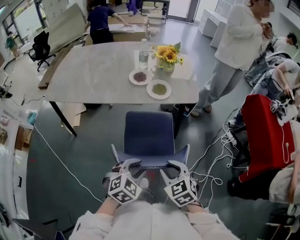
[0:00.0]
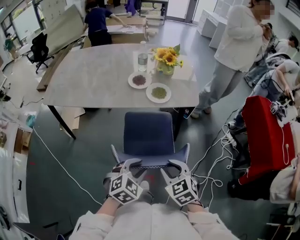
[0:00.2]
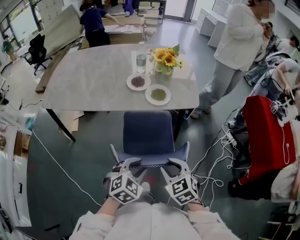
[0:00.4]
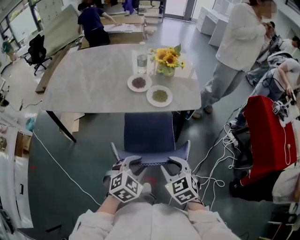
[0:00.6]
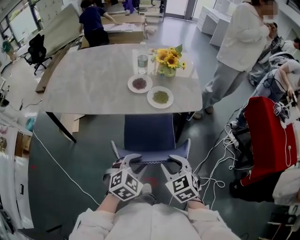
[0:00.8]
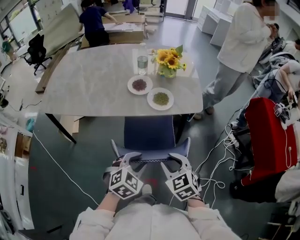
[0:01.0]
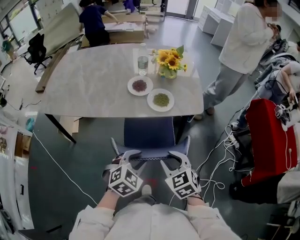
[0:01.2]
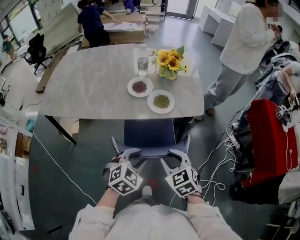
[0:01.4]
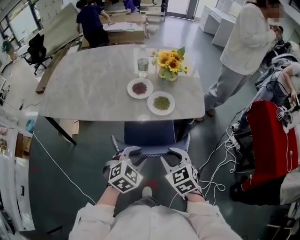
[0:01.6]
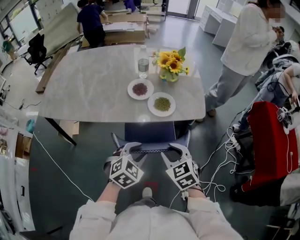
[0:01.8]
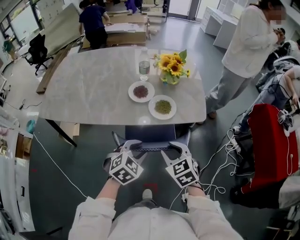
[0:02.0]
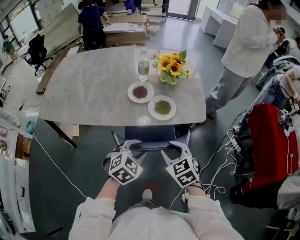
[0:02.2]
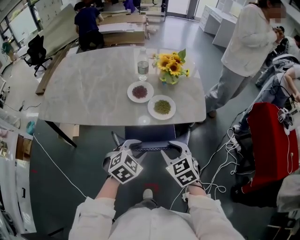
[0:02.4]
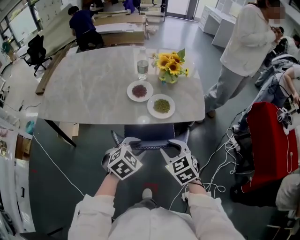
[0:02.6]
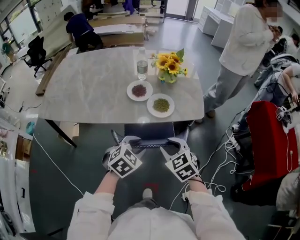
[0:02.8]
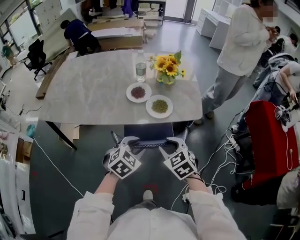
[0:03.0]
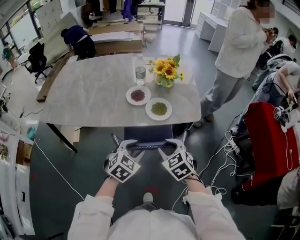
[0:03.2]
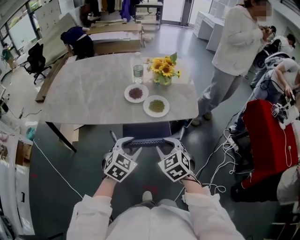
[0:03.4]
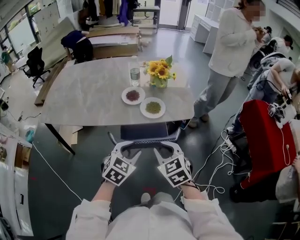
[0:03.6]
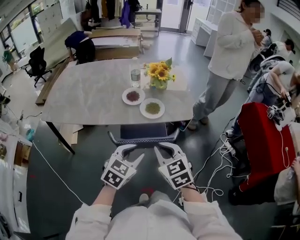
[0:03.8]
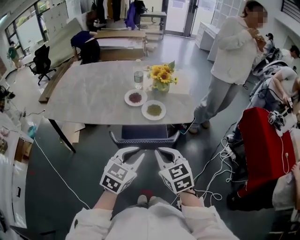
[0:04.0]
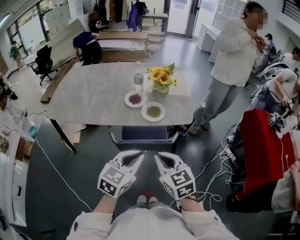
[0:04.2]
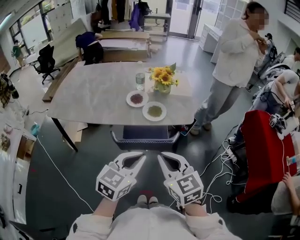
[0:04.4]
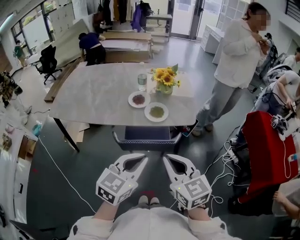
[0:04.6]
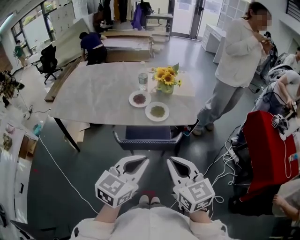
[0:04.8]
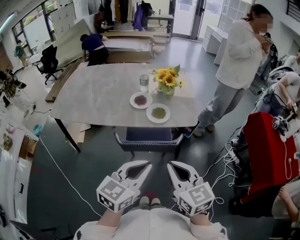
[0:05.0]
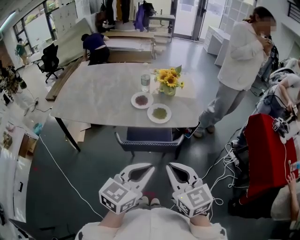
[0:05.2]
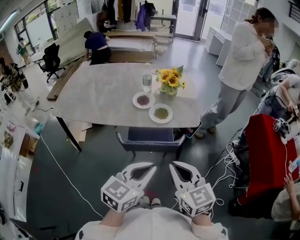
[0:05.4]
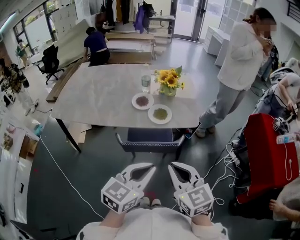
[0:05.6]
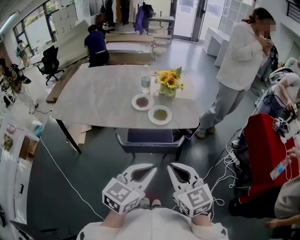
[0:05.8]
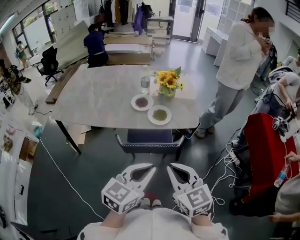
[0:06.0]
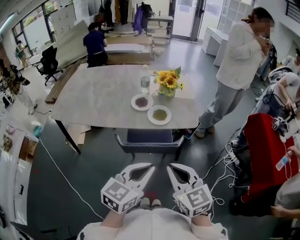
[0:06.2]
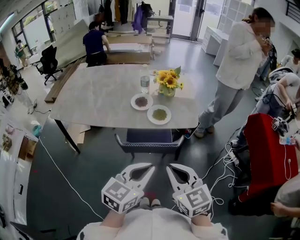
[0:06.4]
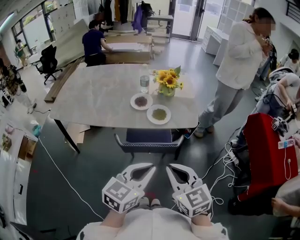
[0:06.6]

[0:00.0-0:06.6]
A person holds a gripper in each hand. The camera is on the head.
0:00.0 to 0:01.6: Both grippers travel together forward, some 20 cm.
0:01.6 to 0:03.2: There are only small adjustments of the grippers.
0:03.2 to 0:05.0: The right gripper goes approximately 20 cm upward and backward, swivels approximately 30 degrees, and closes its fingers; the left gripper heads upward, backward and to the right, covering roughly 25 cm, changes its angle by approximately 40 degrees, and closes its fingers.
0:05.0 to 0:06.6: The grippers stay close to where they were, moving slightly.

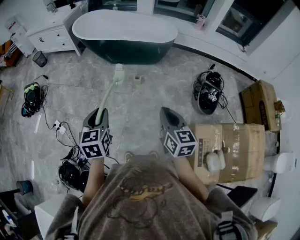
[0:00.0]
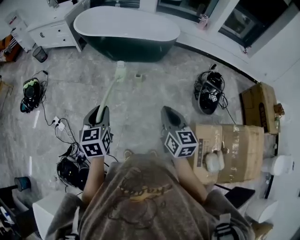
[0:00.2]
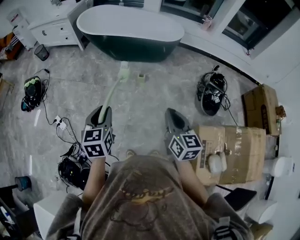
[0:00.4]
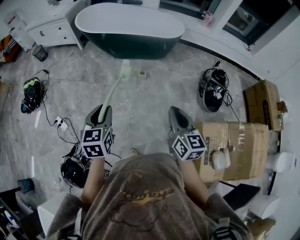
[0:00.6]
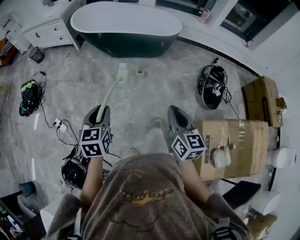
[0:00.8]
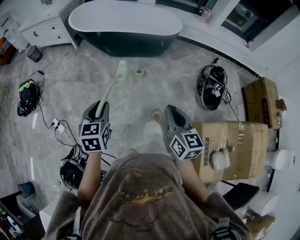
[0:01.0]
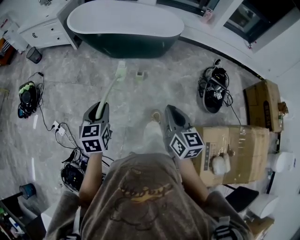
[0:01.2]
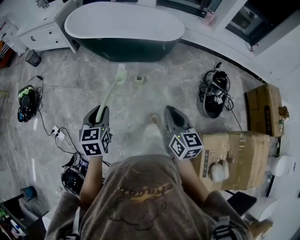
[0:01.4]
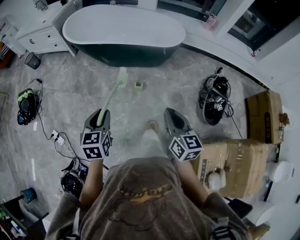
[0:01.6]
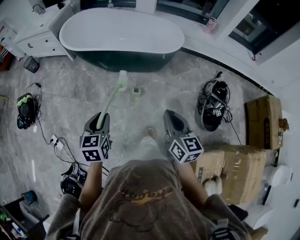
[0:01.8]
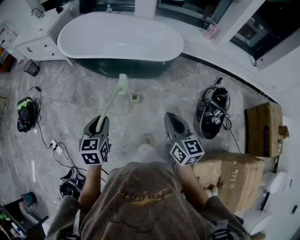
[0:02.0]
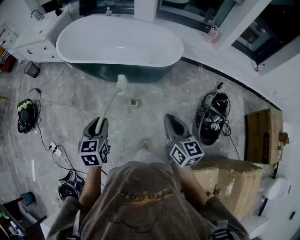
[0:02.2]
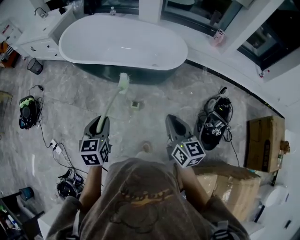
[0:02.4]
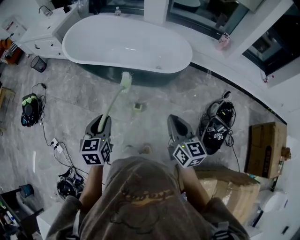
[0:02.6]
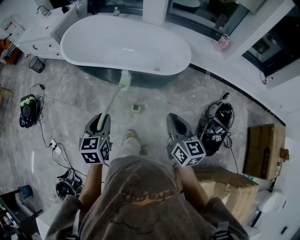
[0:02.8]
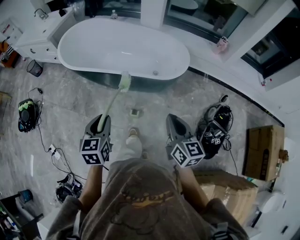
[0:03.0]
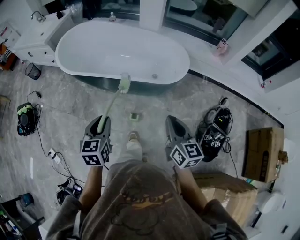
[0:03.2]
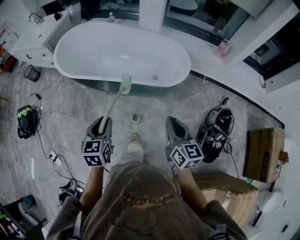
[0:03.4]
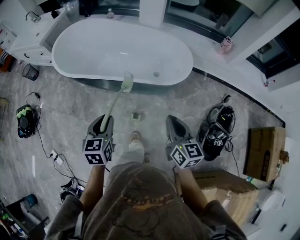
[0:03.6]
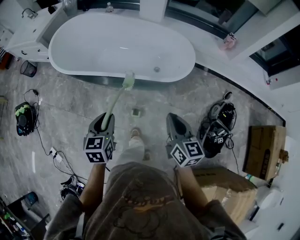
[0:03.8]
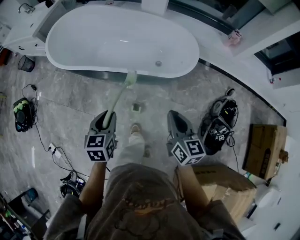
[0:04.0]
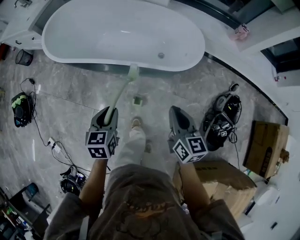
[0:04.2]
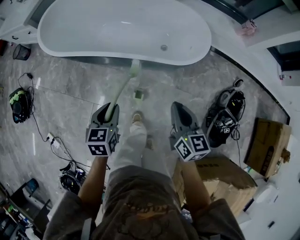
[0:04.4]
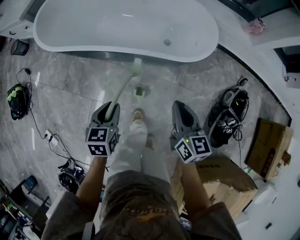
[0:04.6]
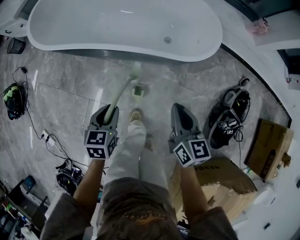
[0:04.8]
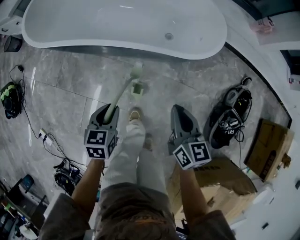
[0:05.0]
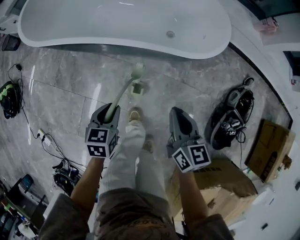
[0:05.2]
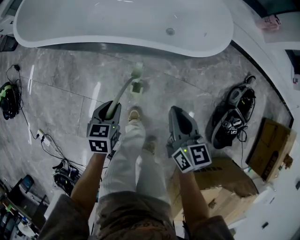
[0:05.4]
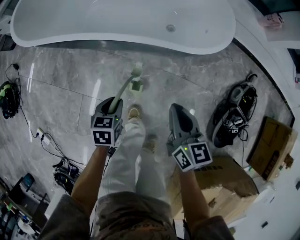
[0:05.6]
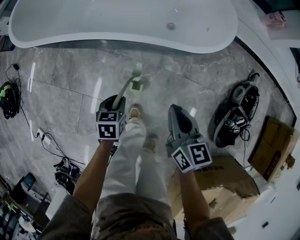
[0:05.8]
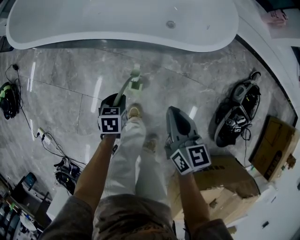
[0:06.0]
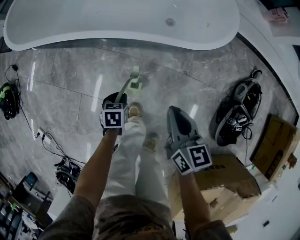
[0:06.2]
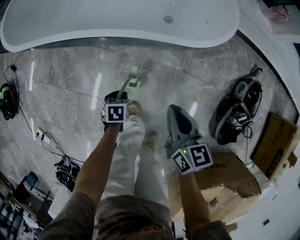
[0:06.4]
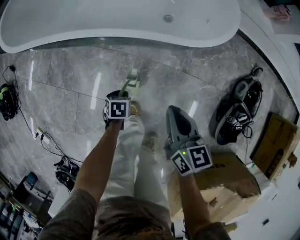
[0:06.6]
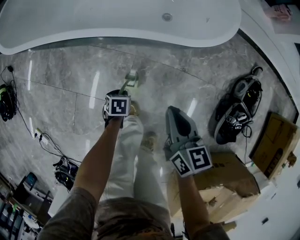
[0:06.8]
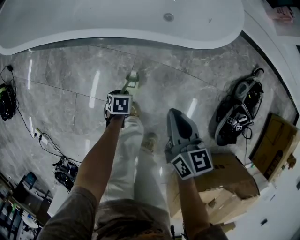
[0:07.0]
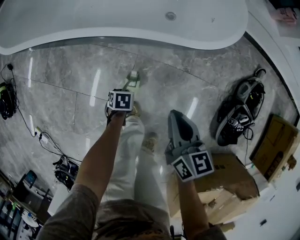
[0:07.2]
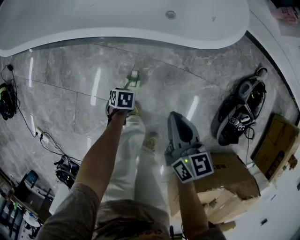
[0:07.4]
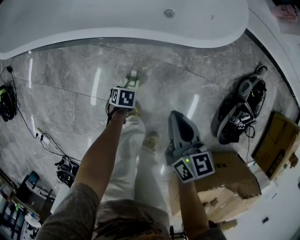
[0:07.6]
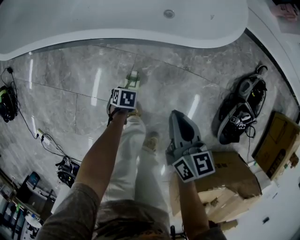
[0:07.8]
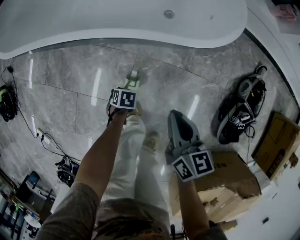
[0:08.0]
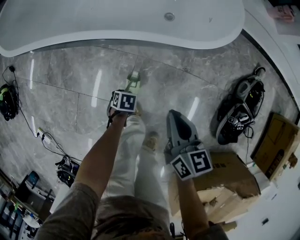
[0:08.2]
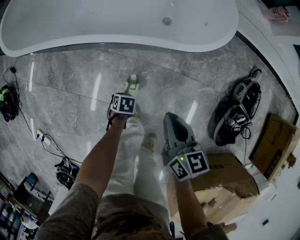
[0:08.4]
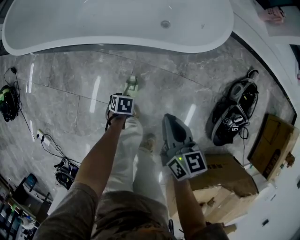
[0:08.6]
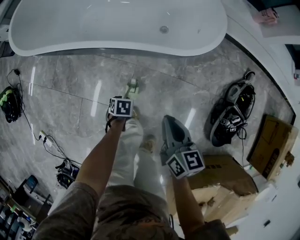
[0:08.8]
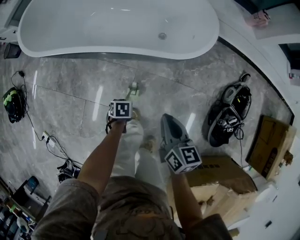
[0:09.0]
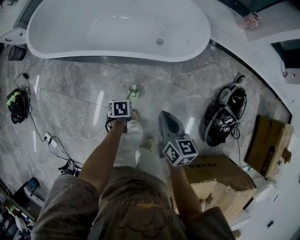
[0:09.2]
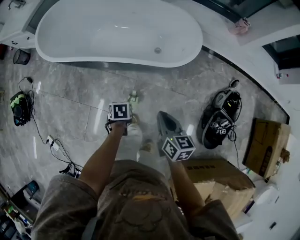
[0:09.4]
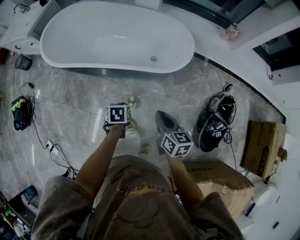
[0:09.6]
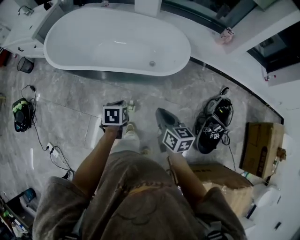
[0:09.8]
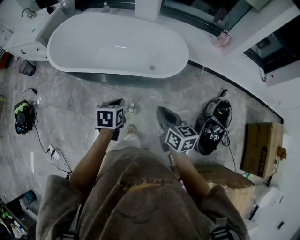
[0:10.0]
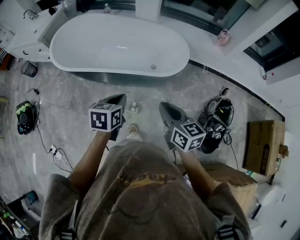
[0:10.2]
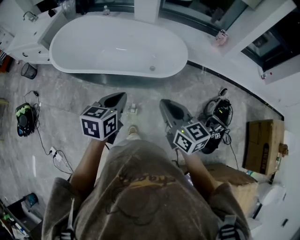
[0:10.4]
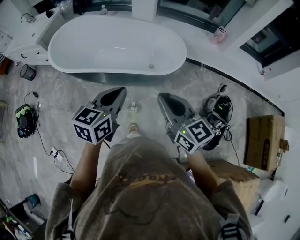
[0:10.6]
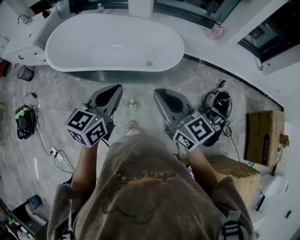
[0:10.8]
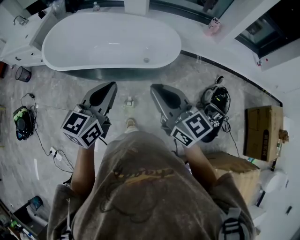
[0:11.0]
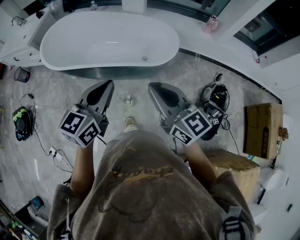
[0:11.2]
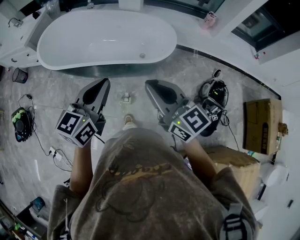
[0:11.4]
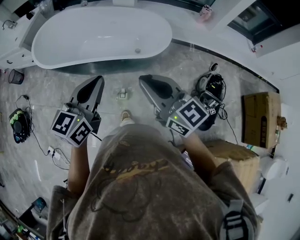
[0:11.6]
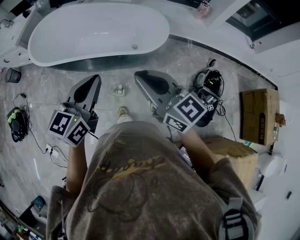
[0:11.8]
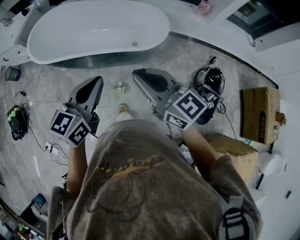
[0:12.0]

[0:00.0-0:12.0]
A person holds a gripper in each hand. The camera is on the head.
0:00.0 to 0:01.6: Both grippers move forward, about 20 cm.
0:01.6 to 0:03.0: Both grippers travel together forward and to the right, roughly 30 cm.
0:03.0 to 0:04.4: The left gripper moves downward and forward, some 20 cm, while the right gripper heads forward and downward, covering about 20 cm.
0:04.4 to 0:06.0: The right gripper moves downward, approximately 20 cm, while the left gripper shifts about 30 cm downward, and changes its angle by approximately 20 degrees.
0:06.0 to 0:07.6: The right gripper moves about 5 cm. Meanwhile the left gripper heads downward, covering about 15 cm, and turns by some 20 degrees.
0:07.6 to 0:09.0: The two grippers go approximately 15 cm upward. The left gripper closes.
0:09.0 to 0:10.4: The right gripper shifts approximately 30 cm upward, and turns by roughly 30 degrees, while the left gripper moves upward, about 50 cm, and angles its fingers upward, by roughly 50 degrees.
0:10.4 to 0:12.0: The left gripper shifts roughly 10 cm upward and backward, and changes its angle by about 20 degrees. Meanwhile the right gripper shifts approximately 5 cm upward.

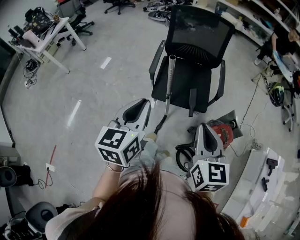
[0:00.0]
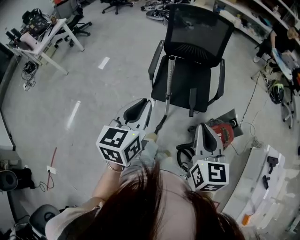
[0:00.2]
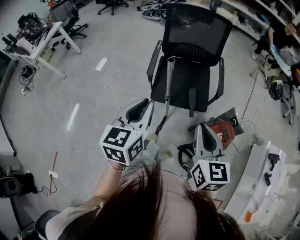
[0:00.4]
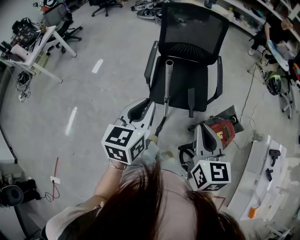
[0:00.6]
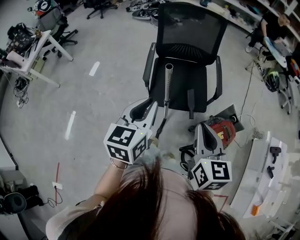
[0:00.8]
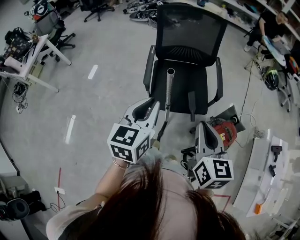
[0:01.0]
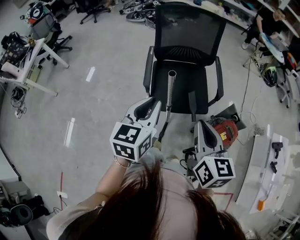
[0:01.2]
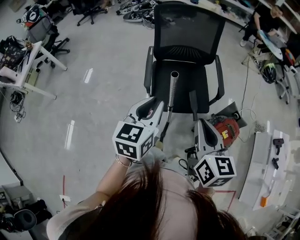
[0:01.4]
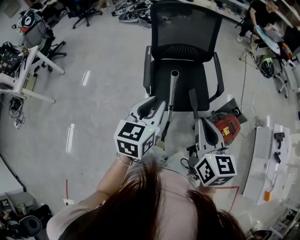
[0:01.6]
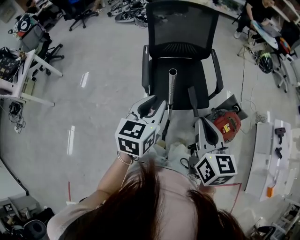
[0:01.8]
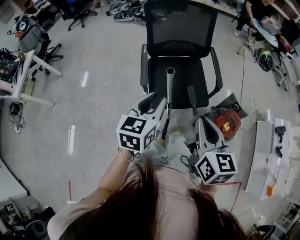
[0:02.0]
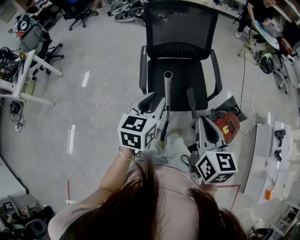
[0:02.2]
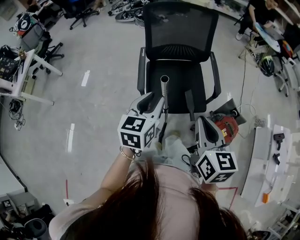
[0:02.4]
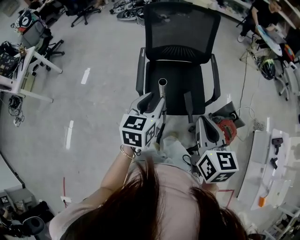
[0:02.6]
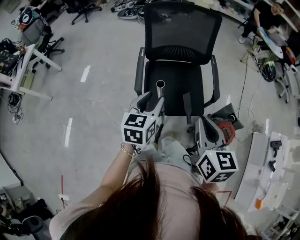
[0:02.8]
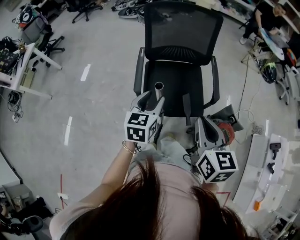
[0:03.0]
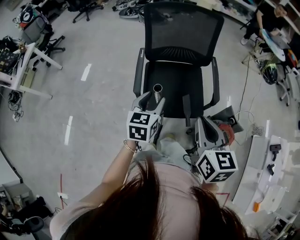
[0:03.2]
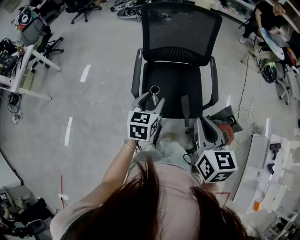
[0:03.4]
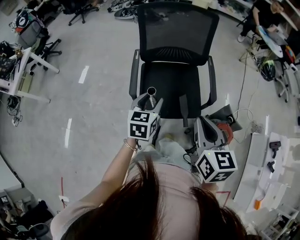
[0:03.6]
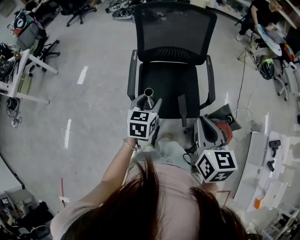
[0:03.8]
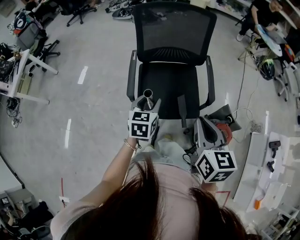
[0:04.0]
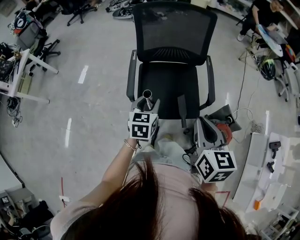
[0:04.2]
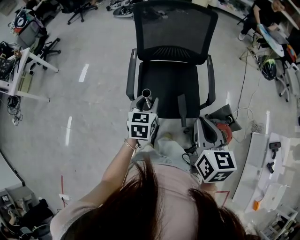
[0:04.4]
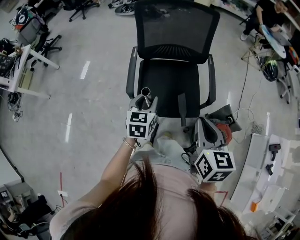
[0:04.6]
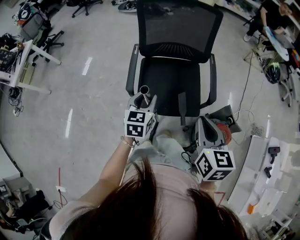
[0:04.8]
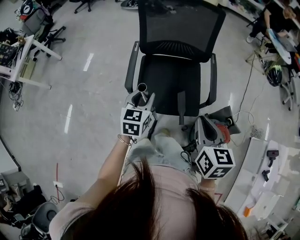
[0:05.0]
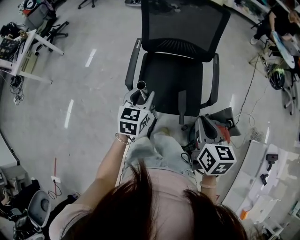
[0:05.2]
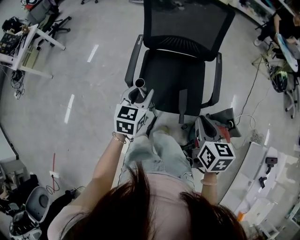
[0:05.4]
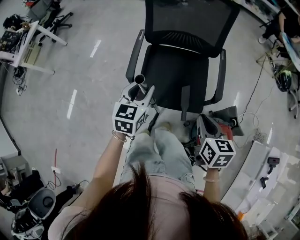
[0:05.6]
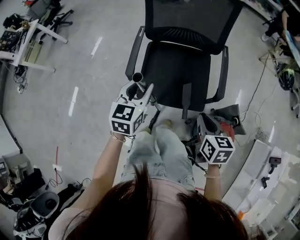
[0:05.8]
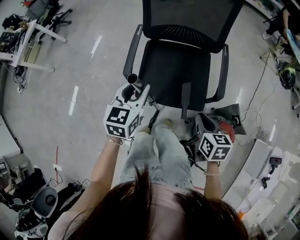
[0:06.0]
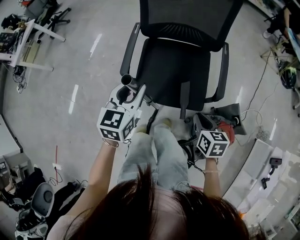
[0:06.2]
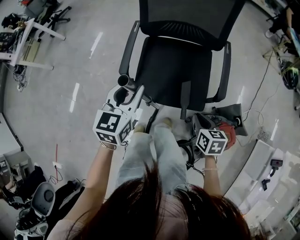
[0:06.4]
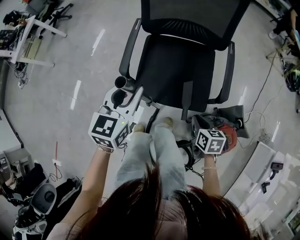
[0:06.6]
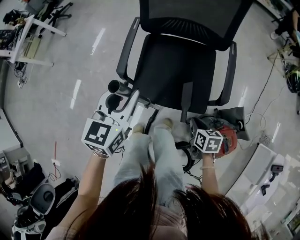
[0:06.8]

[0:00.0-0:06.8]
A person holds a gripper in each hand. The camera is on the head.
0:00.0 to 0:01.4: The left gripper shifts about 15 cm forward. Meanwhile the right gripper shifts about 15 cm to the left and forward.
0:01.4 to 0:02.8: The right gripper heads forward, covering roughly 10 cm, while the left gripper goes approximately 15 cm forward and downward, and opens.
0:02.8 to 0:04.0: The left gripper is displaced downward and forward by about 10 cm, while the right gripper shifts by roughly 5 cm.
0:04.0 to 0:05.4: The right gripper moves downward and to the right, some 15 cm.
0:05.4 to 0:06.8: The right gripper shifts about 30 cm downward, and changes its angle by roughly 20 degrees.
